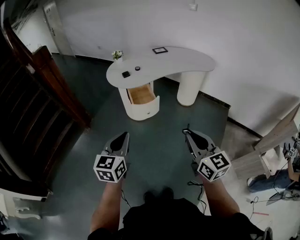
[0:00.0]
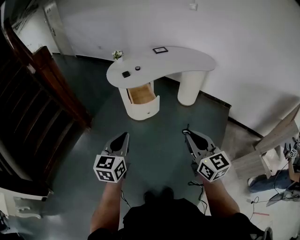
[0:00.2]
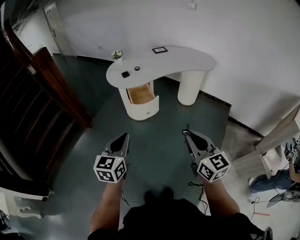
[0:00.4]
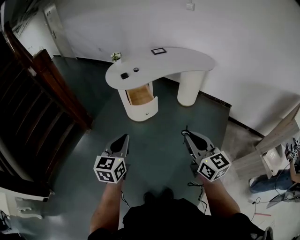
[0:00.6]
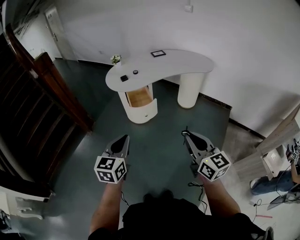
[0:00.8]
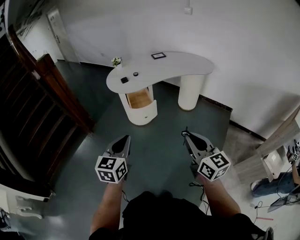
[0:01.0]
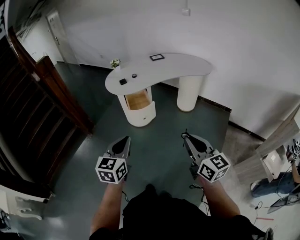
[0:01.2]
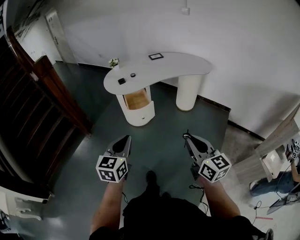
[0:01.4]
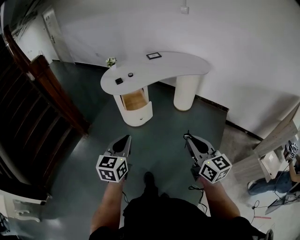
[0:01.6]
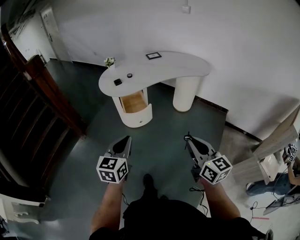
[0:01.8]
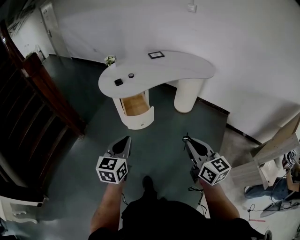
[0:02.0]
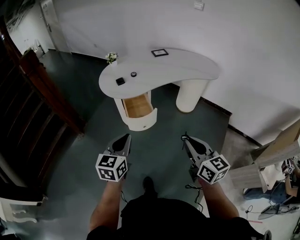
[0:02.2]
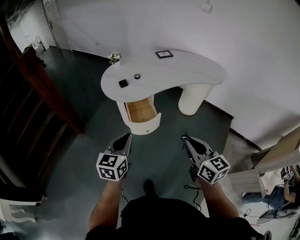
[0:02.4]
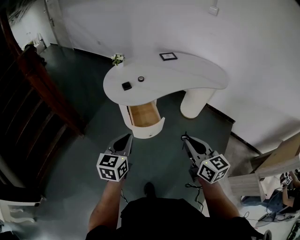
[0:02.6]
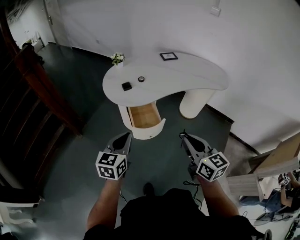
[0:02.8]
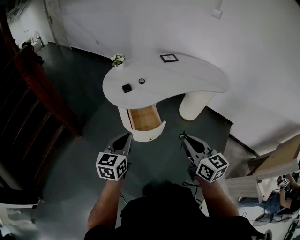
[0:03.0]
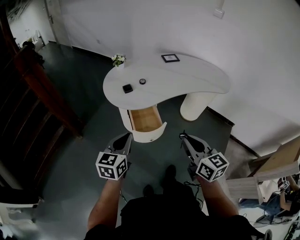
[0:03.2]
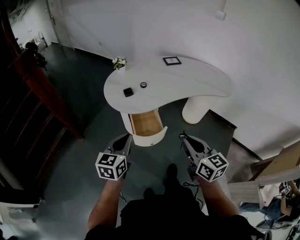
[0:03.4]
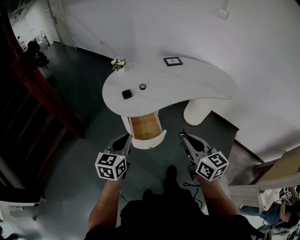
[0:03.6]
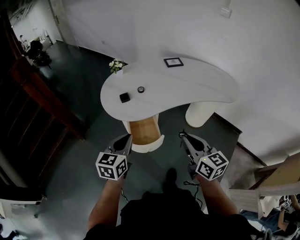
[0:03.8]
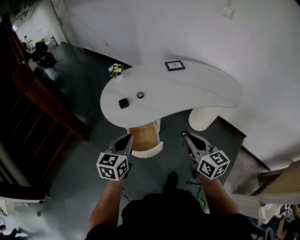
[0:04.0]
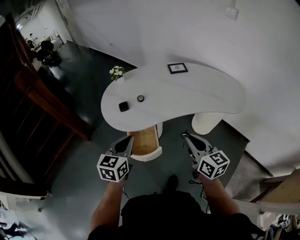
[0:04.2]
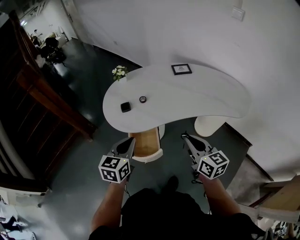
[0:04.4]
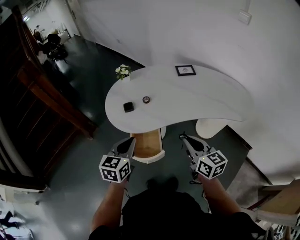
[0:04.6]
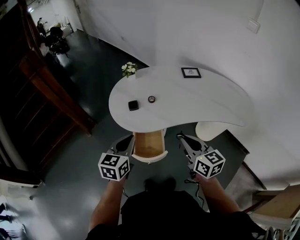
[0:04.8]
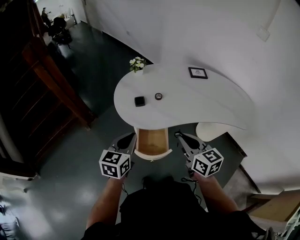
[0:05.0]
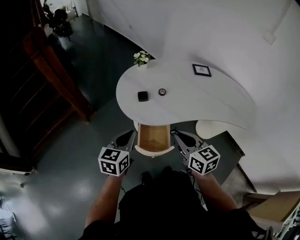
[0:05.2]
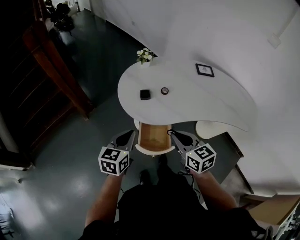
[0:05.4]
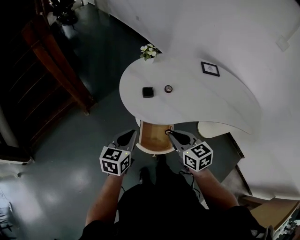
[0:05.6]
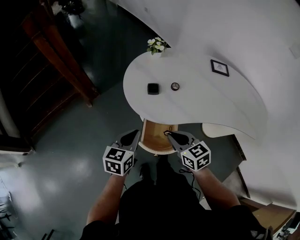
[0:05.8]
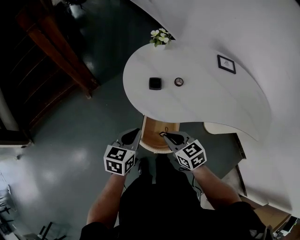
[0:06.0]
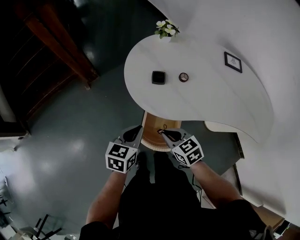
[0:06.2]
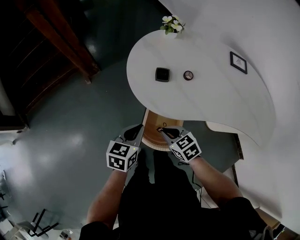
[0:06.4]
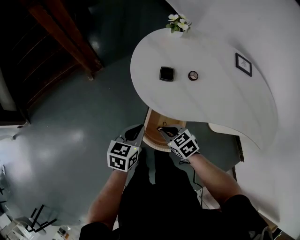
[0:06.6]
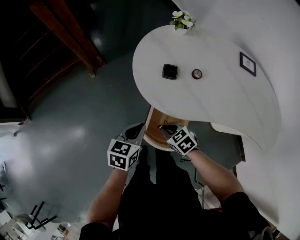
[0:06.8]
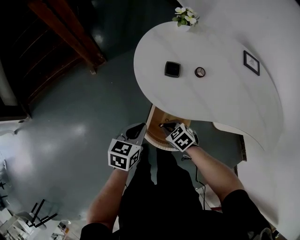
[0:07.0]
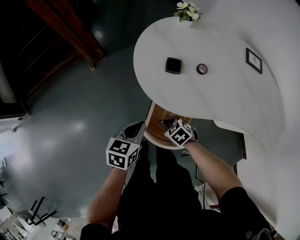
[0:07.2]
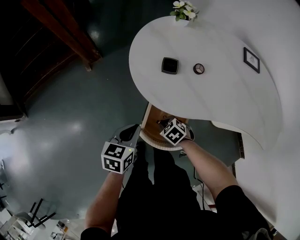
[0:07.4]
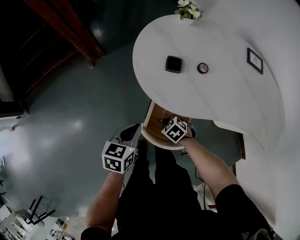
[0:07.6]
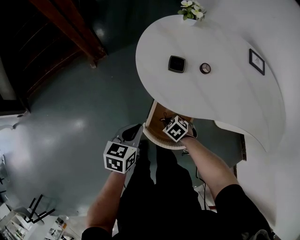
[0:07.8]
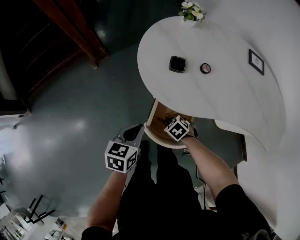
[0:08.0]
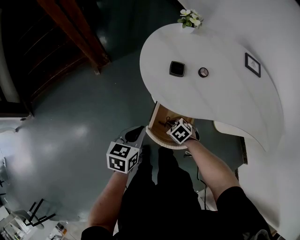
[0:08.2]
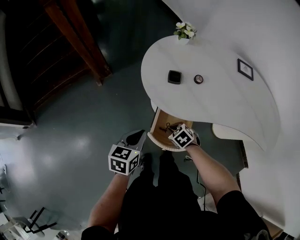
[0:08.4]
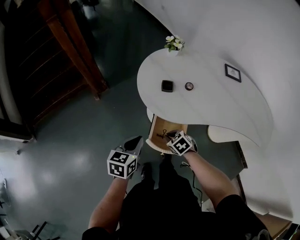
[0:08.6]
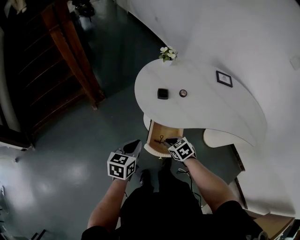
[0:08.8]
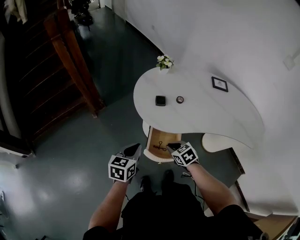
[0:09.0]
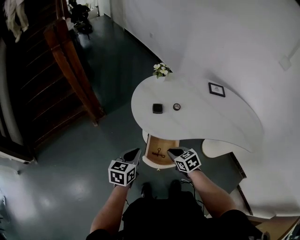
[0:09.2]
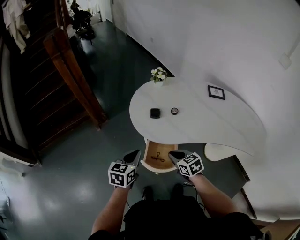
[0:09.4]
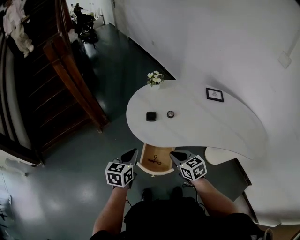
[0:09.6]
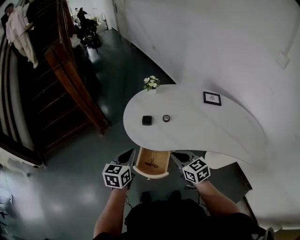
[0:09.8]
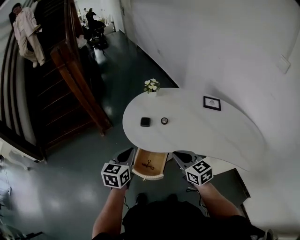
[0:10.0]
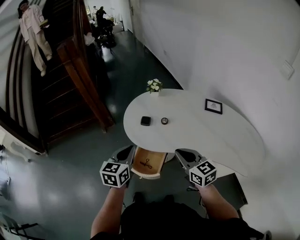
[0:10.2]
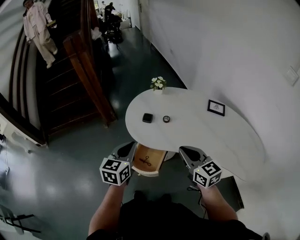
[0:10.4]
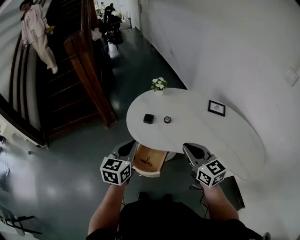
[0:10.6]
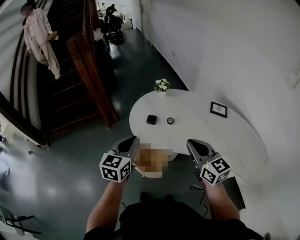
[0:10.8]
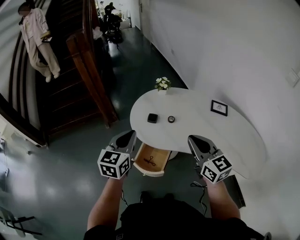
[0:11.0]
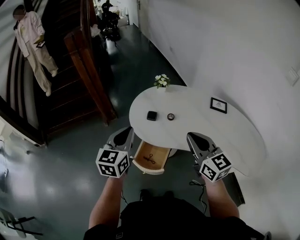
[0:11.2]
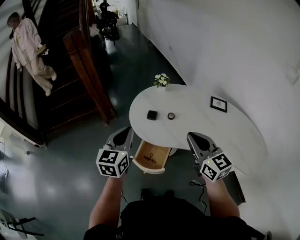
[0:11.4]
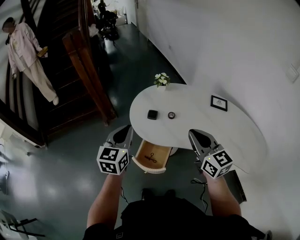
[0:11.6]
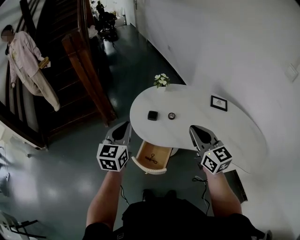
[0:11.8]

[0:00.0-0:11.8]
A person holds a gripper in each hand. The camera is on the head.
0:00.0 to 0:01.4: The grippers both shift to the right by about 10 cm.
0:01.4 to 0:03.0: The right gripper shifts approximately 30 cm forward and to the left; the left gripper moves forward, about 30 cm.
0:03.0 to 0:04.4: The grippers both shift forward and to the right by some 25 cm.
0:04.4 to 0:06.0: The left gripper shifts about 20 cm downward, to the left and forward, while the right gripper is displaced to the left, downward and forward by roughly 30 cm, and swivels about 40 degrees.
0:06.0 to 0:07.4: The right gripper is displaced downward by roughly 25 cm, and turns by approximately 40 degrees, while the left gripper goes approximately 10 cm downward.
0:07.4 to 0:08.8: Both grippers move upward, approximately 15 cm. The right gripper changes its angle by some 20 degrees.
0:08.8 to 0:10.4: The left gripper moves upward and to the right, some 20 cm, and swivels approximately 20 degrees. Meanwhile the right gripper goes about 35 cm upward and to the right, and angles its fingers upward, by some 40 degrees.
0:10.4 to 0:11.8: The right gripper goes roughly 5 cm upward; the left gripper is displaced forward, to the left and upward by about 10 cm.

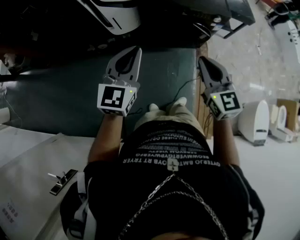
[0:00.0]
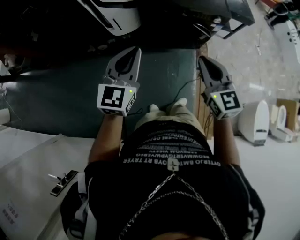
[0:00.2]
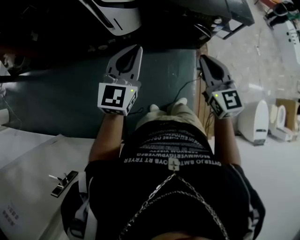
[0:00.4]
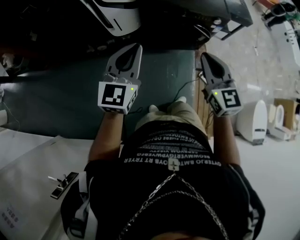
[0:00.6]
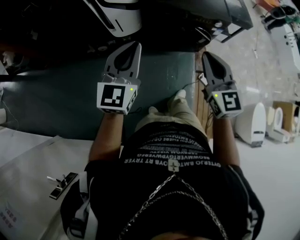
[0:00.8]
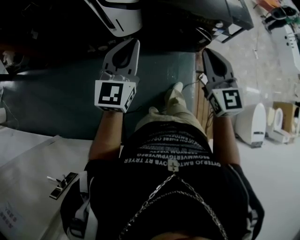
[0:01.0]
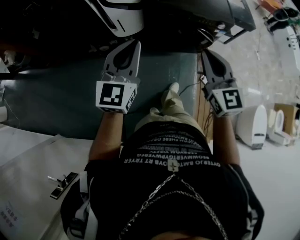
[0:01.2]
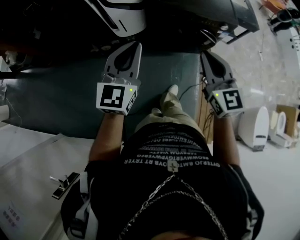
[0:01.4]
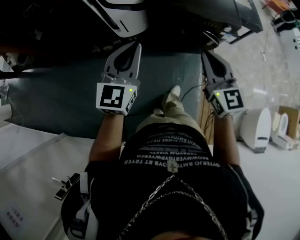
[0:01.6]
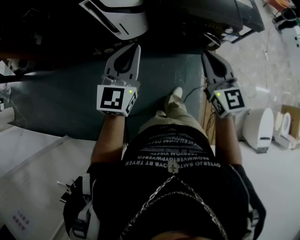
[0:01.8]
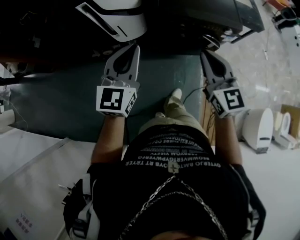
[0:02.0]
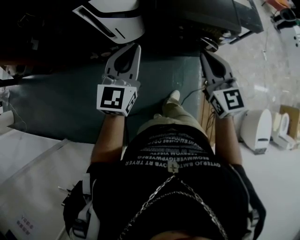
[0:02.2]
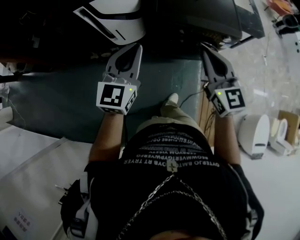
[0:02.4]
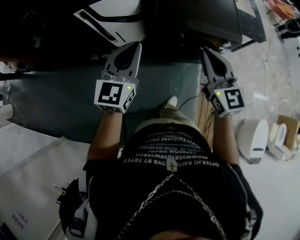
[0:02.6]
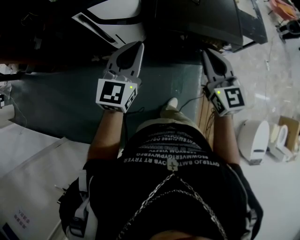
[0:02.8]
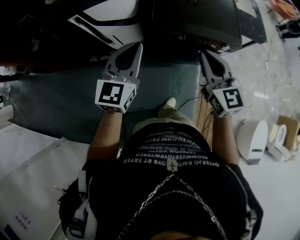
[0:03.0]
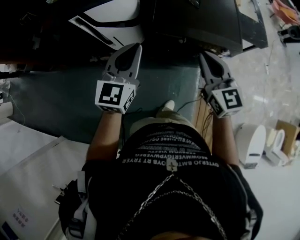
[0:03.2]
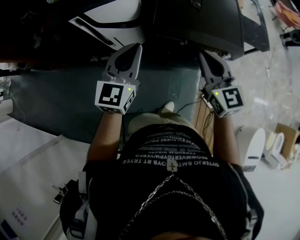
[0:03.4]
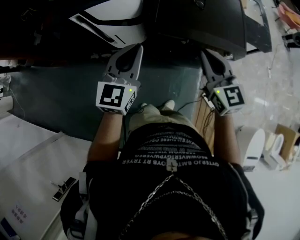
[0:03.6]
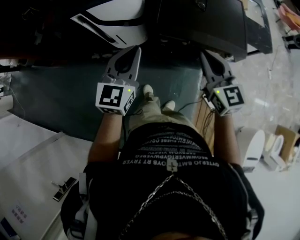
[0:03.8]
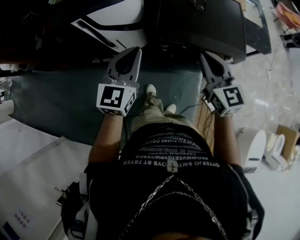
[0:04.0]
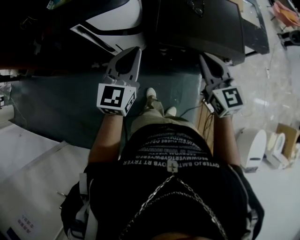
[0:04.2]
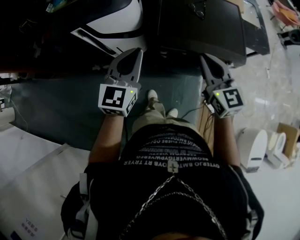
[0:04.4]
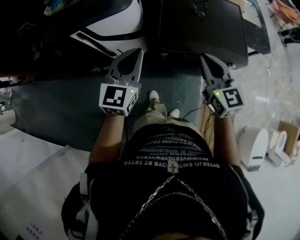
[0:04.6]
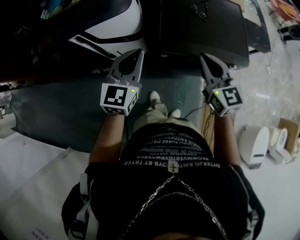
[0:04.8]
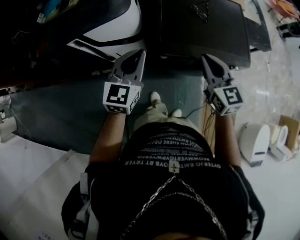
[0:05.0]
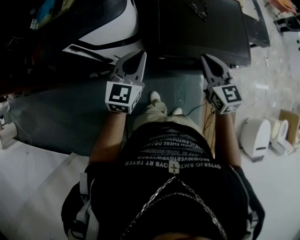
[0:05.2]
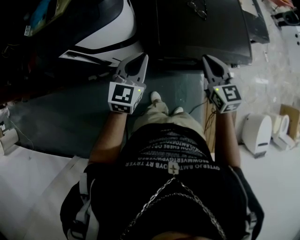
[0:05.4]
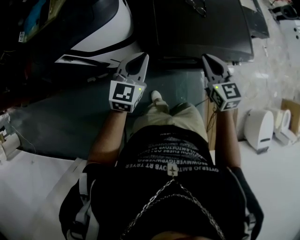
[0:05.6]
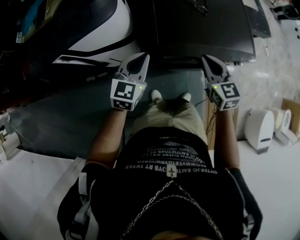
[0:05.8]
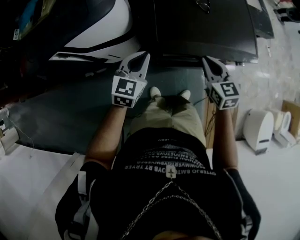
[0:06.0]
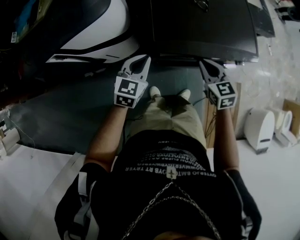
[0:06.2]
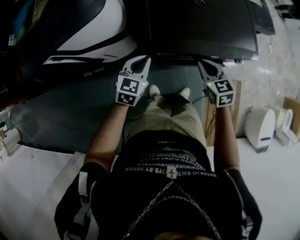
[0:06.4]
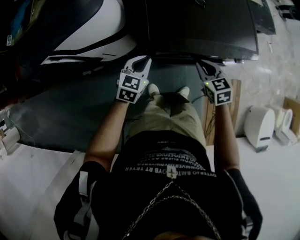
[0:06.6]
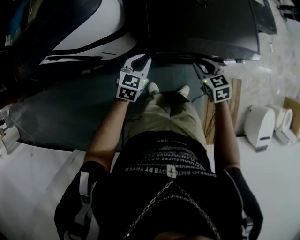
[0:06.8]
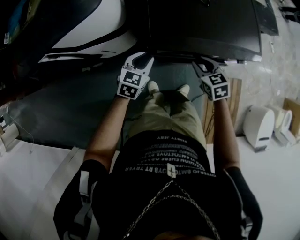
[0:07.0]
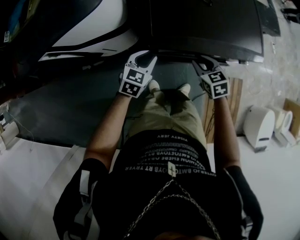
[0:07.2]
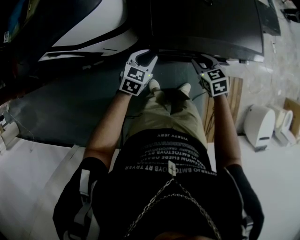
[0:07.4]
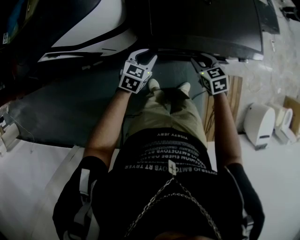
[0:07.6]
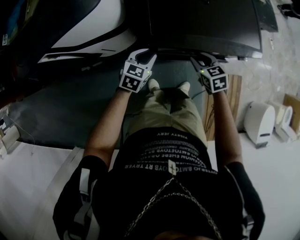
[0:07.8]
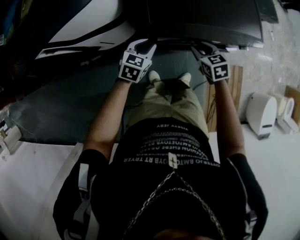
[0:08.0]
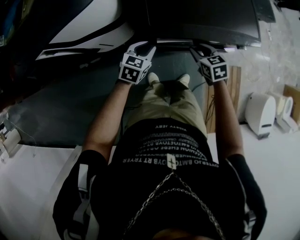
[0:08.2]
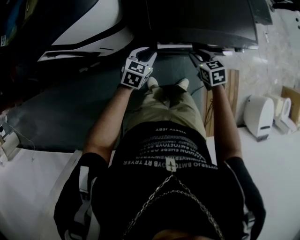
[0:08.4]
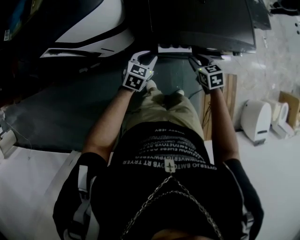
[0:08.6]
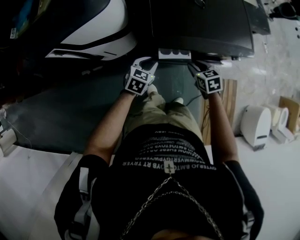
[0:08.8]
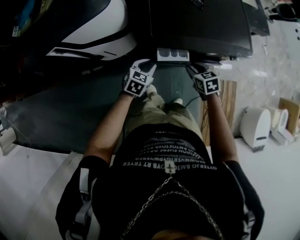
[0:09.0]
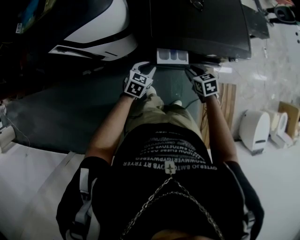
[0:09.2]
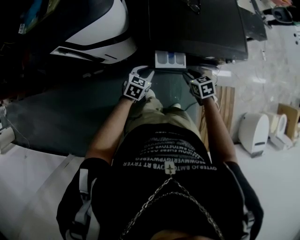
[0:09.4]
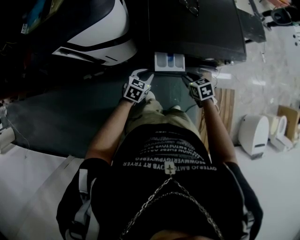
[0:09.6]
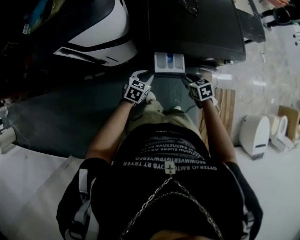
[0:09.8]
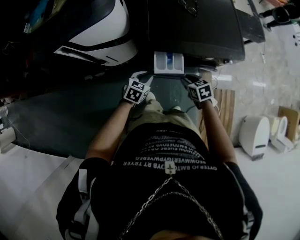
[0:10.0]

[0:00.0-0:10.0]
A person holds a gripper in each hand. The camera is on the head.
0:00.0 to 0:01.4: The left gripper ends up about 5 cm from where it was, while the right gripper travels forward by roughly 5 cm.
0:01.4 to 0:02.8: The two grippers go about 20 cm forward.
0:02.8 to 0:04.2: The grippers both shift forward by some 10 cm.
0:04.2 to 0:05.8: Both grippers move downward and forward, roughly 20 cm. The left gripper turns by about 20 degrees.
0:05.8 to 0:07.2: The grippers both shift downward by some 15 cm. The right gripper swivels about 20 degrees, and opens.
0:07.2 to 0:08.6: The grippers stay close to where they were, moving slightly.
0:08.6 to 0:10.0: The grippers both shift backward by some 10 cm.

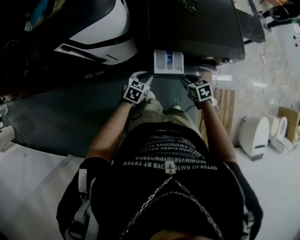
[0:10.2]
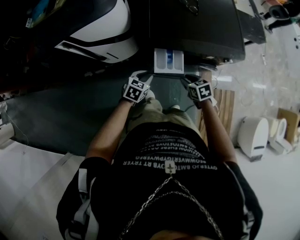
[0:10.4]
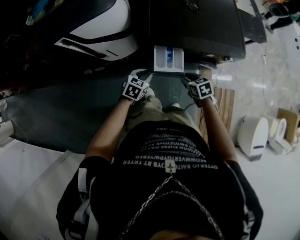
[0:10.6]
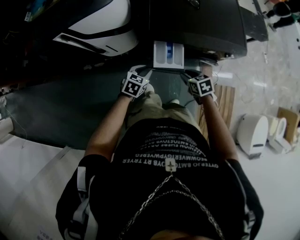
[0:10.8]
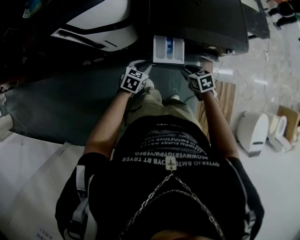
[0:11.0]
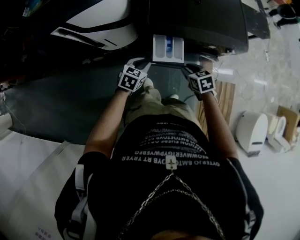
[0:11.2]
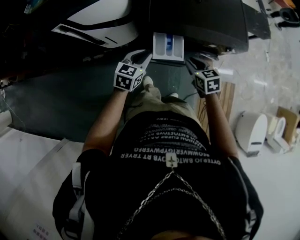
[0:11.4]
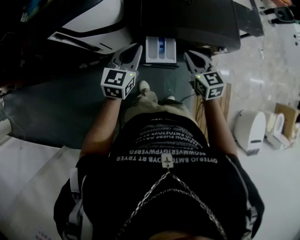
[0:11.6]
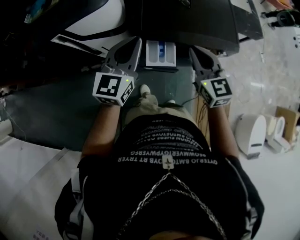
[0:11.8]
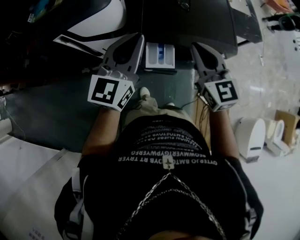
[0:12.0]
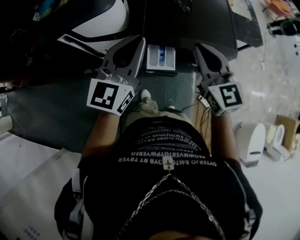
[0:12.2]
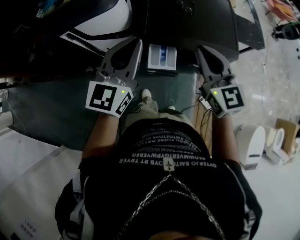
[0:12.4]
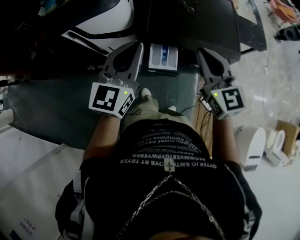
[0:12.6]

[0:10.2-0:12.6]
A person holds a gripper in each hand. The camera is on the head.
0:10.2 to 0:11.4: The two grippers go about 10 cm upward.
0:11.4 to 0:12.6: The grippers both shift upward by approximately 30 cm. The right gripper tilts its fingers roughly 40 degrees upward, and closes its fingers, while the left gripper rotates some 30 degrees.
